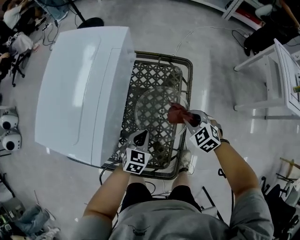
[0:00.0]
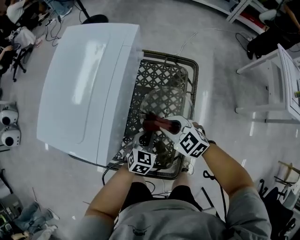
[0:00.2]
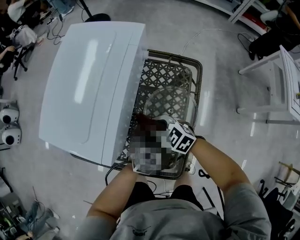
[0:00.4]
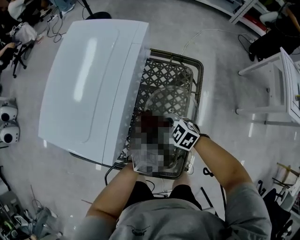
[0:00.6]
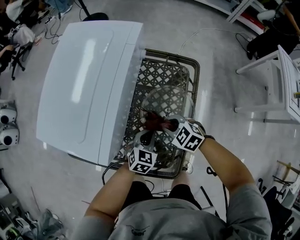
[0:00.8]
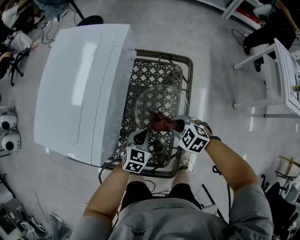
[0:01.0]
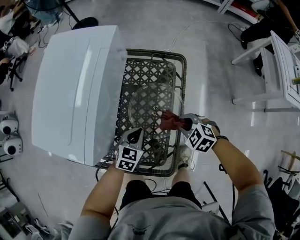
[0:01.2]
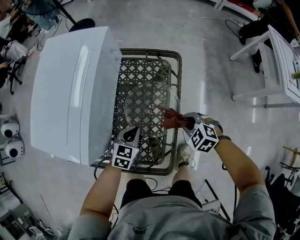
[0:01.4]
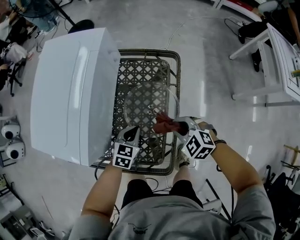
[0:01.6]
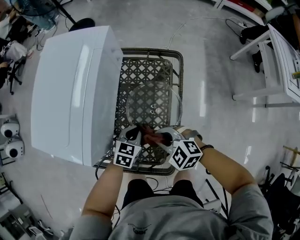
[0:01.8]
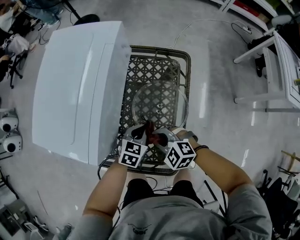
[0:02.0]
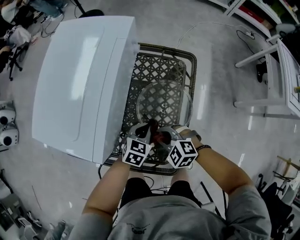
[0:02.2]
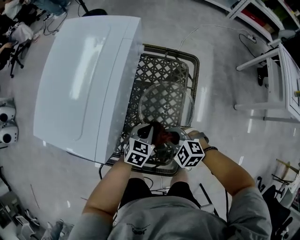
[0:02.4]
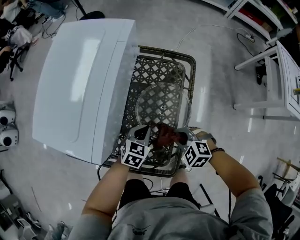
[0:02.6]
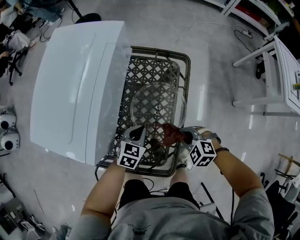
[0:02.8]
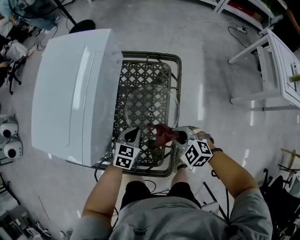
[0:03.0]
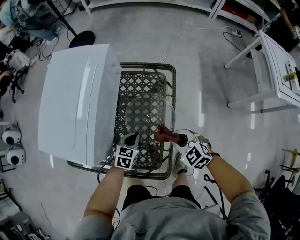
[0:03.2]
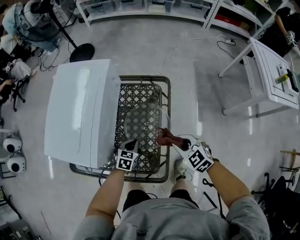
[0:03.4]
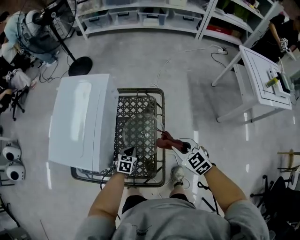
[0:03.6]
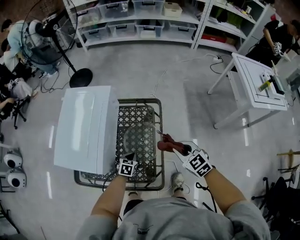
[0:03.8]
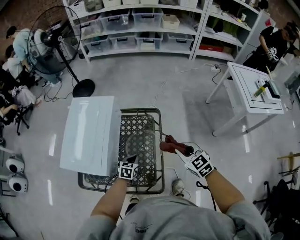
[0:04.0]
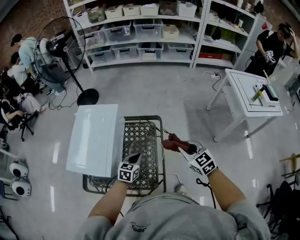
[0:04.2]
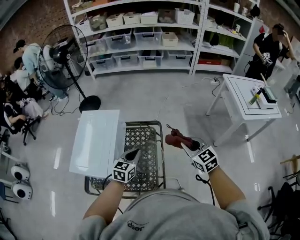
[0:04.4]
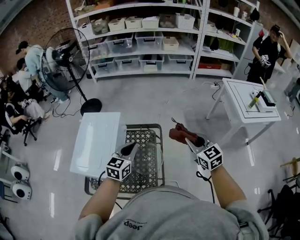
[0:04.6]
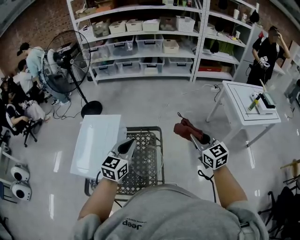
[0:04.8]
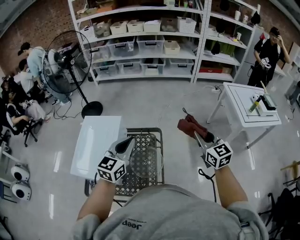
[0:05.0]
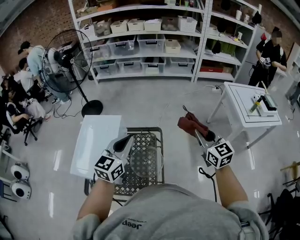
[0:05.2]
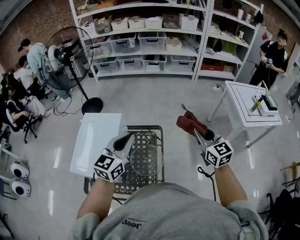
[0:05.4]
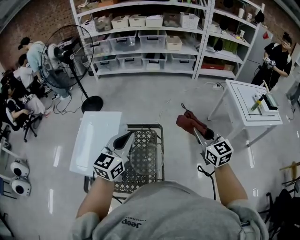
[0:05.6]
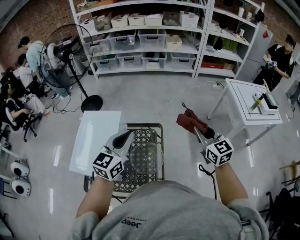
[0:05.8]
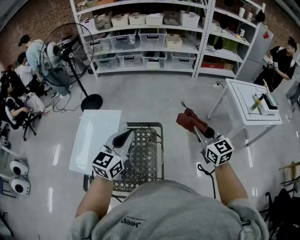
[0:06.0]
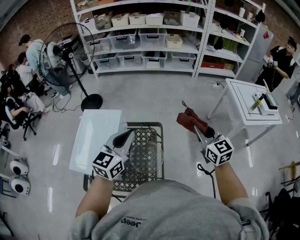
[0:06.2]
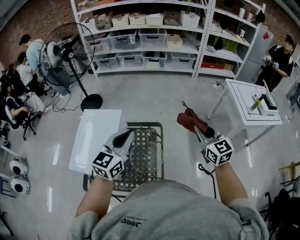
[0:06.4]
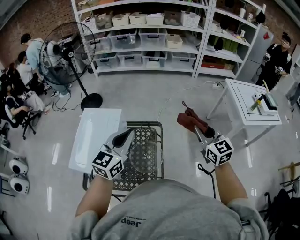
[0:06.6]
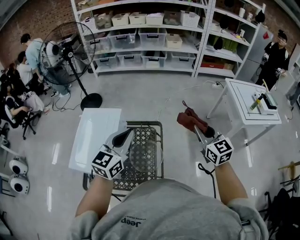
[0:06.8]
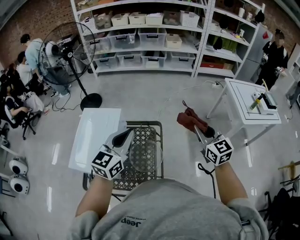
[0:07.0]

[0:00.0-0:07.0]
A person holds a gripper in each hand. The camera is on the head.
0:00.0 to 0:01.4: The right gripper is displaced backward by some 5 cm, and reaches about 20 cm to the left, then returns.
0:01.4 to 0:02.8: The right gripper travels to the left and back again, roughly 20 cm each way.
0:02.8 to 0:04.2: The left gripper is displaced upward by approximately 20 cm; the right gripper goes some 30 cm upward, and tips its fingers upward by about 30 degrees.
0:04.2 to 0:05.6: The right gripper heads upward, covering some 15 cm, and changes its angle by about 20 degrees; the left gripper is displaced upward by about 30 cm, and rotates approximately 30 degrees.
0:05.6 to 0:07.0: Neither gripper changes place.

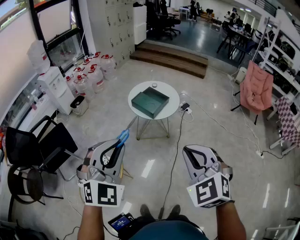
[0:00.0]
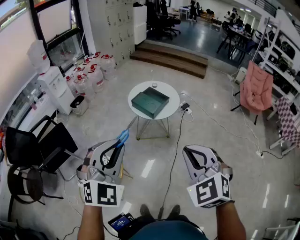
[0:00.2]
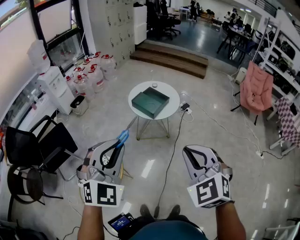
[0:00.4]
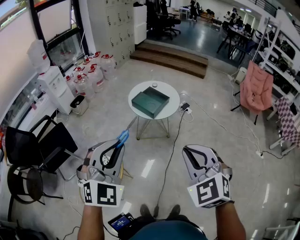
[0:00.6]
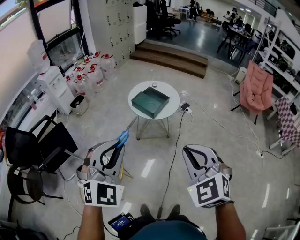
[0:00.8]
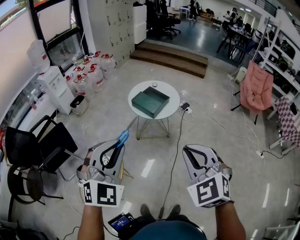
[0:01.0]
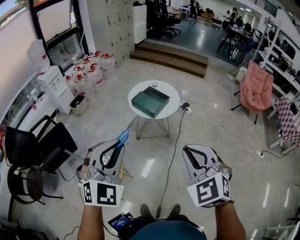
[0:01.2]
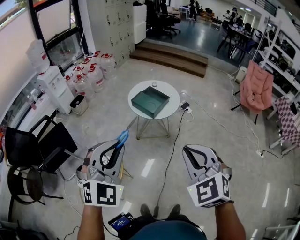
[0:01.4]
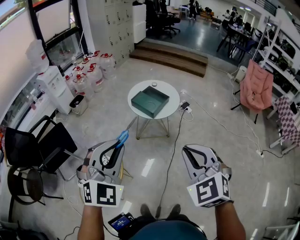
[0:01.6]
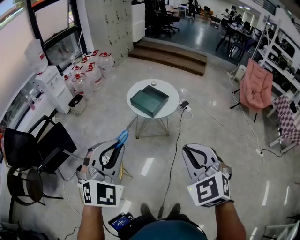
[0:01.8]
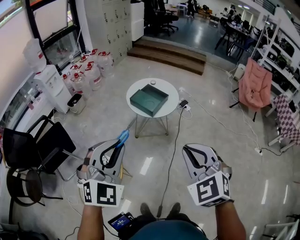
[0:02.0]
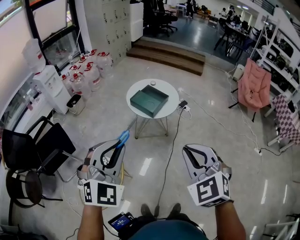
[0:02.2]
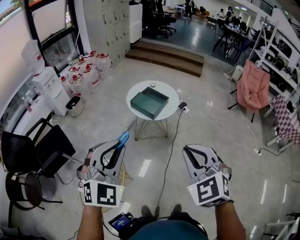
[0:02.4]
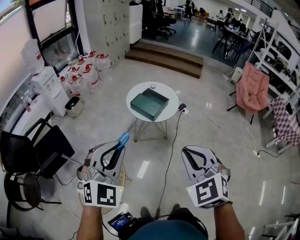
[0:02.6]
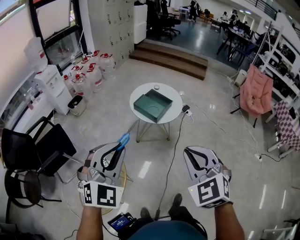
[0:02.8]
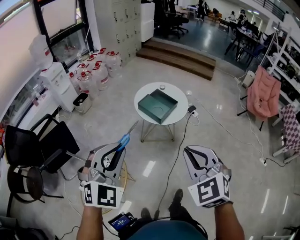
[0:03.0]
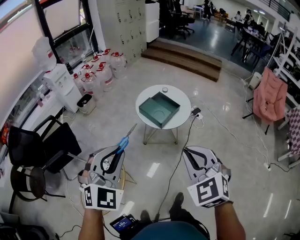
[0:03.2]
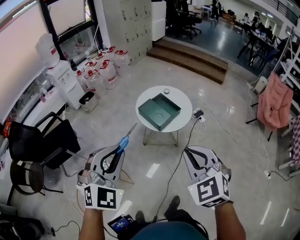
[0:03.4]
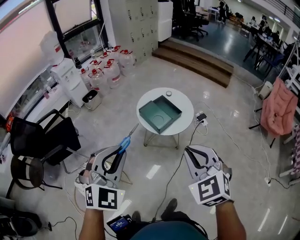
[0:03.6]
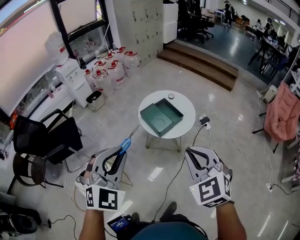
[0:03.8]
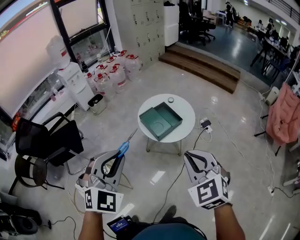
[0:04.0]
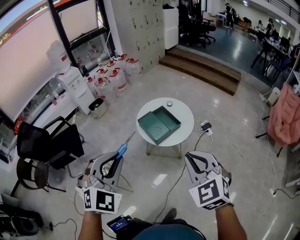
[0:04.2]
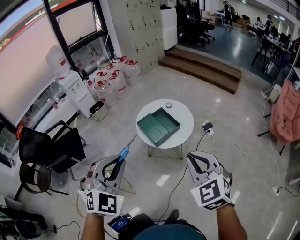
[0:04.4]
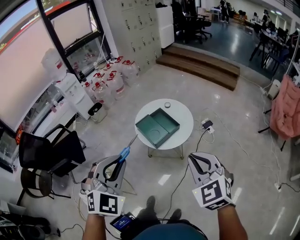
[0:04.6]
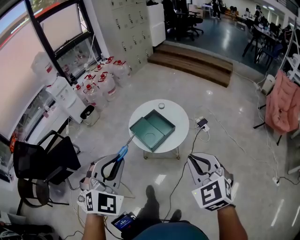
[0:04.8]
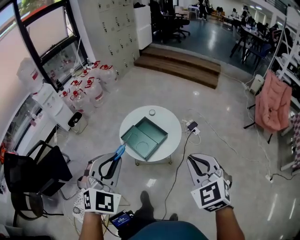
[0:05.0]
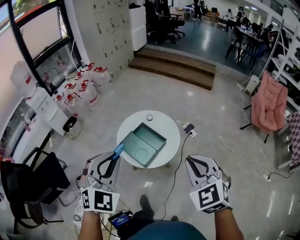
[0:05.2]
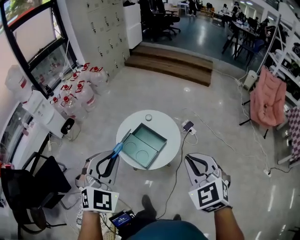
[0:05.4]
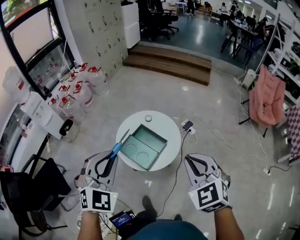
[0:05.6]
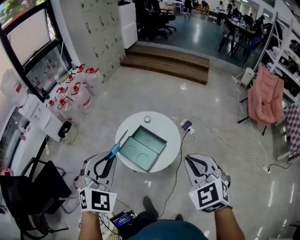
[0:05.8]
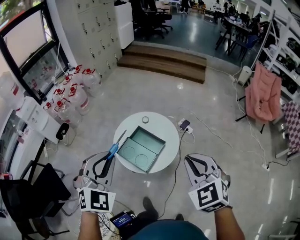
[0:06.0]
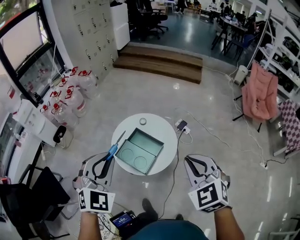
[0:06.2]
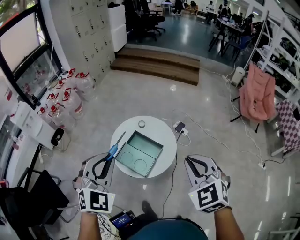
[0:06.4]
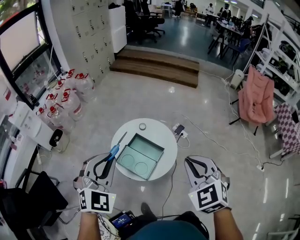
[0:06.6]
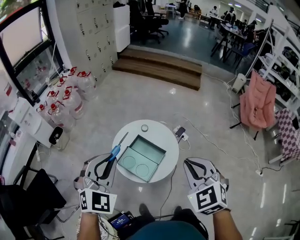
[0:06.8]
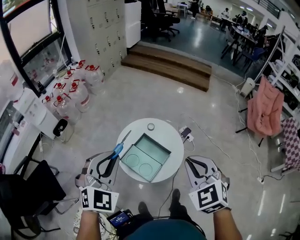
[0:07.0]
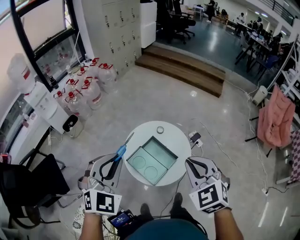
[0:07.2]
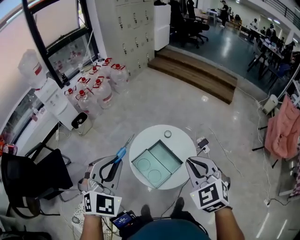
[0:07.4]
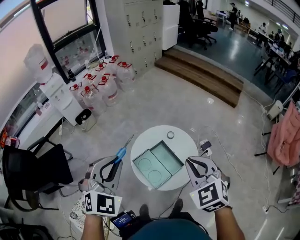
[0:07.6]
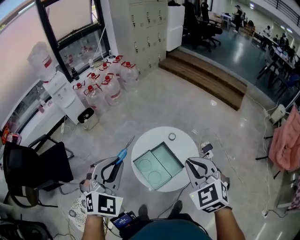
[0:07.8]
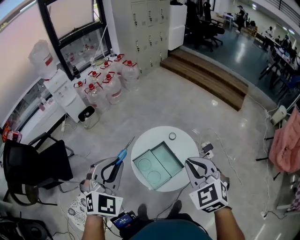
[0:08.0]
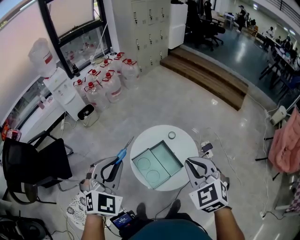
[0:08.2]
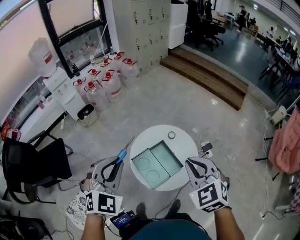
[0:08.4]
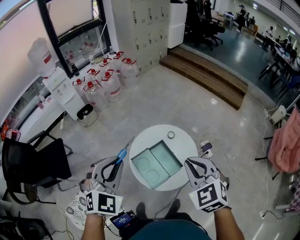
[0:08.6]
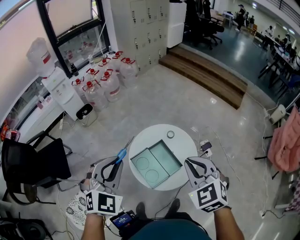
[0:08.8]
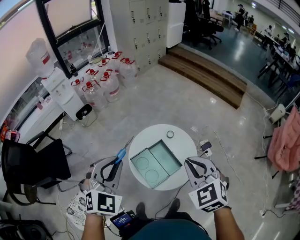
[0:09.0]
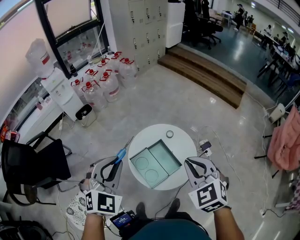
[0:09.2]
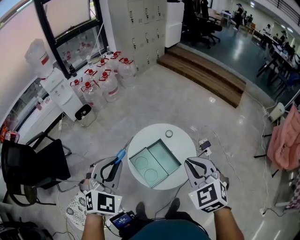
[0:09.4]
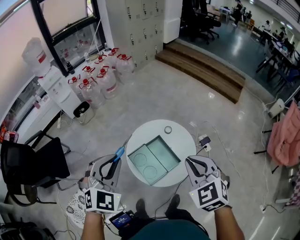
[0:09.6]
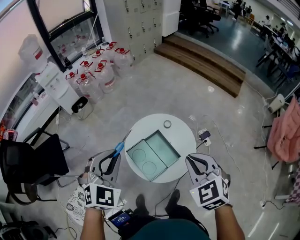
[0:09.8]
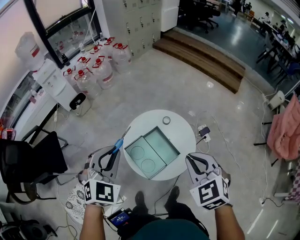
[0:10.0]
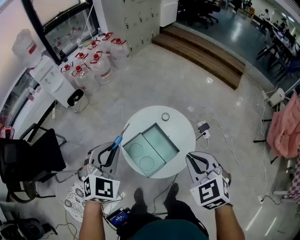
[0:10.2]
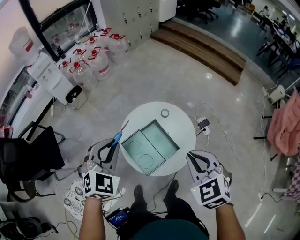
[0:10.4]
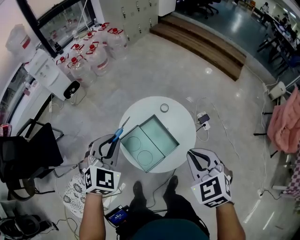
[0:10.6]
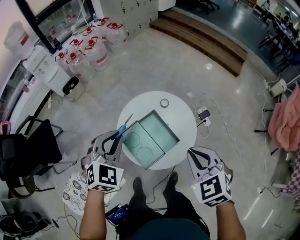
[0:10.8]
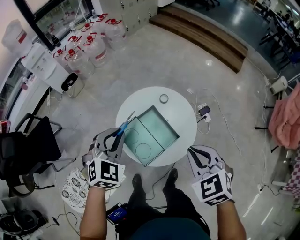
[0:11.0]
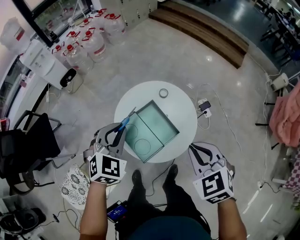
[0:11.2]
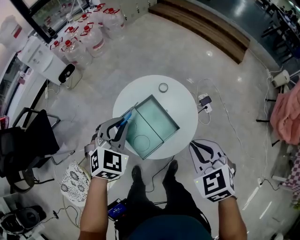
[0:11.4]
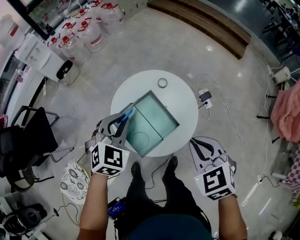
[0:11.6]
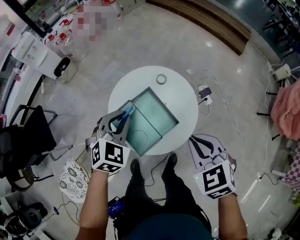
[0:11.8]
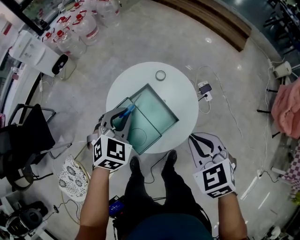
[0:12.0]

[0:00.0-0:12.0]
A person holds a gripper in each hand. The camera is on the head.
0:00.0 to 0:01.6: There are only small adjustments of the grippers.
0:01.6 to 0:03.0: Both grippers travel together forward, roughly 10 cm.
0:03.0 to 0:04.4: Both grippers travel together to the right and forward, roughly 30 cm.
0:04.4 to 0:06.0: The two grippers go roughly 35 cm forward.
0:06.0 to 0:07.6: The right gripper is displaced forward and to the left by approximately 20 cm; the left gripper travels forward and to the left by some 10 cm.
0:07.6 to 0:09.0: There are only small adjustments of the grippers.
0:09.0 to 0:10.4: The right gripper heads downward, covering approximately 10 cm. Meanwhile the left gripper heads downward and forward, covering about 15 cm.
0:10.4 to 0:12.0: The right gripper travels downward by about 15 cm; the left gripper moves downward and to the right, some 25 cm.

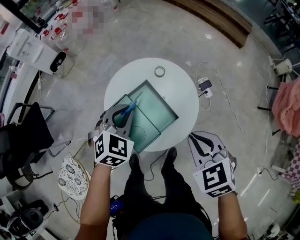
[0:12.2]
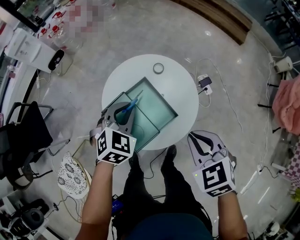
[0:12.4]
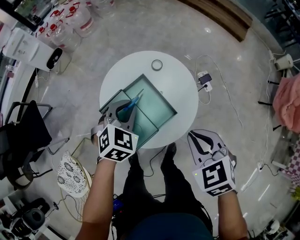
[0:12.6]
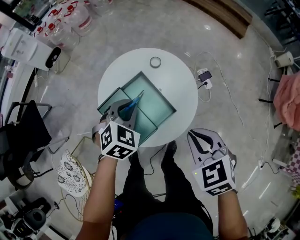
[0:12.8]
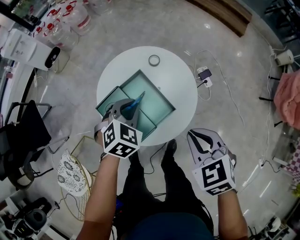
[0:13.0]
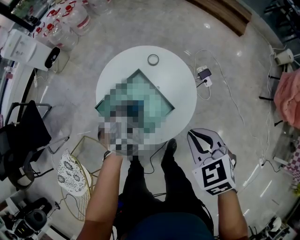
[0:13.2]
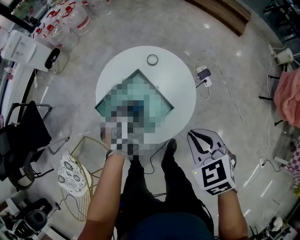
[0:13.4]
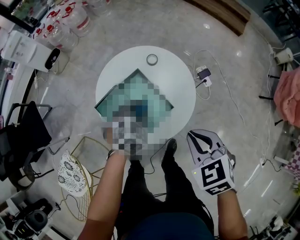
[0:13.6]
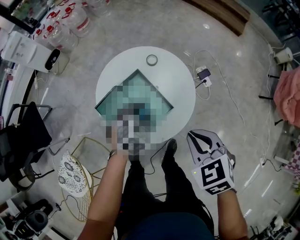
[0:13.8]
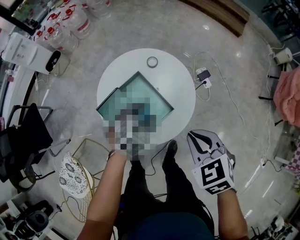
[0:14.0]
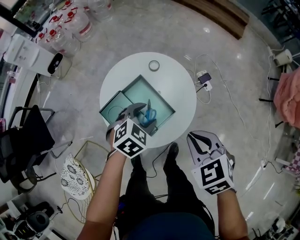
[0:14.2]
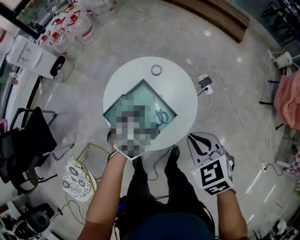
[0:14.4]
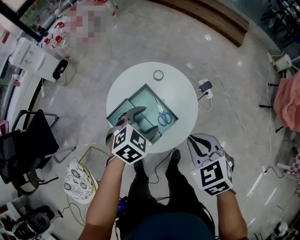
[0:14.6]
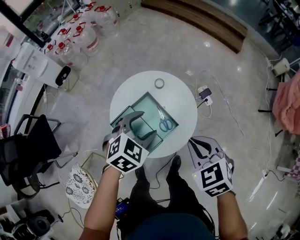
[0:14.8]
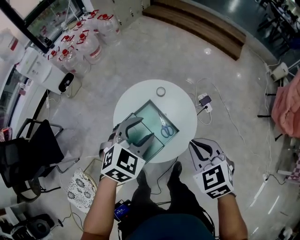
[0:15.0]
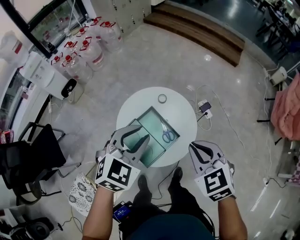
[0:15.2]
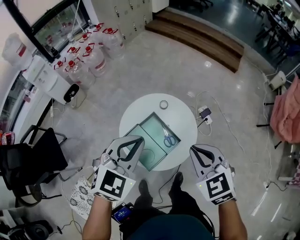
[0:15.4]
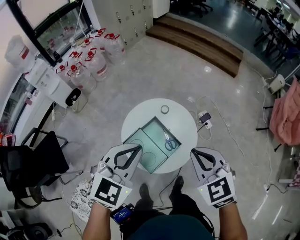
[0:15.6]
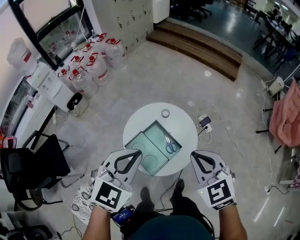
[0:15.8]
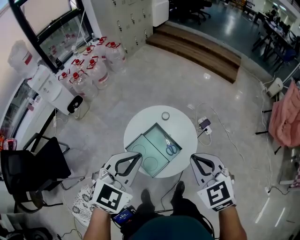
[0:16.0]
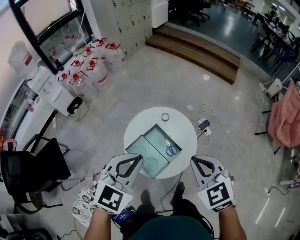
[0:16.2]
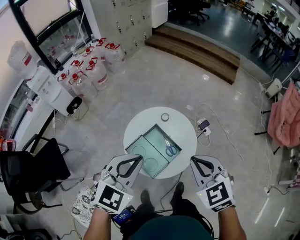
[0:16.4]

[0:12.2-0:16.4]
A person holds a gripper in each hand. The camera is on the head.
0:12.2 to 0:13.6: The left gripper heads downward and to the right, covering about 15 cm, while the right gripper is displaced downward by about 5 cm.
0:13.6 to 0:15.0: The left gripper travels upward by about 20 cm, and opens up, while the right gripper travels upward by about 15 cm.
0:15.0 to 0:16.4: The grippers both shift upward and backward by some 20 cm. The left gripper closes its fingers.
